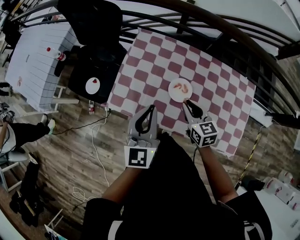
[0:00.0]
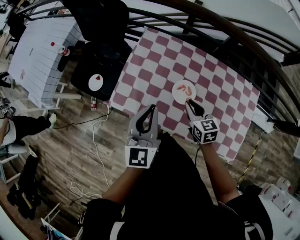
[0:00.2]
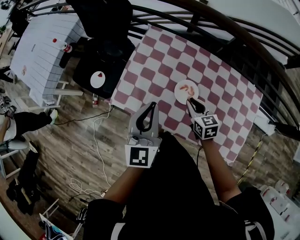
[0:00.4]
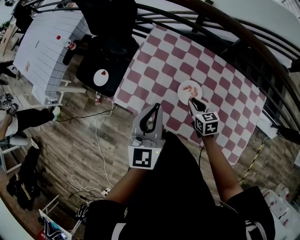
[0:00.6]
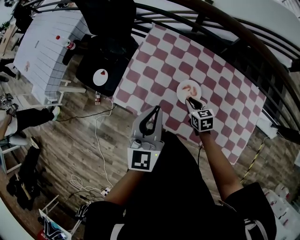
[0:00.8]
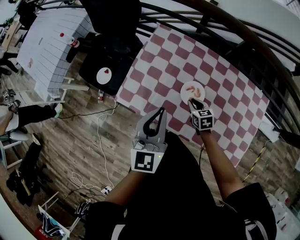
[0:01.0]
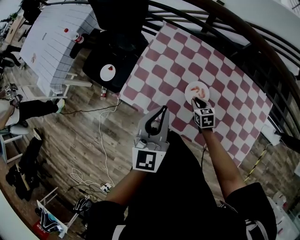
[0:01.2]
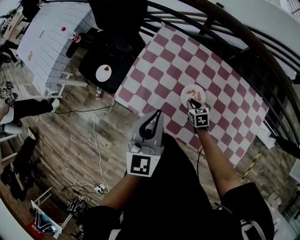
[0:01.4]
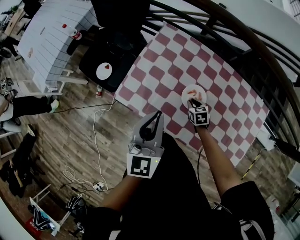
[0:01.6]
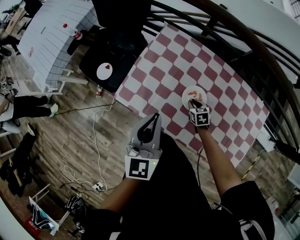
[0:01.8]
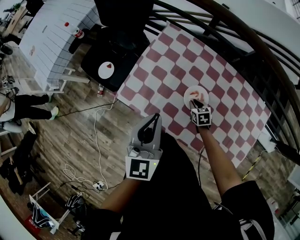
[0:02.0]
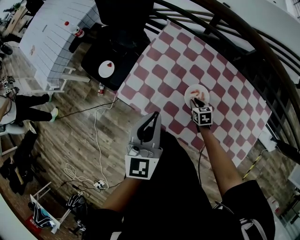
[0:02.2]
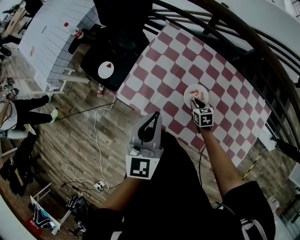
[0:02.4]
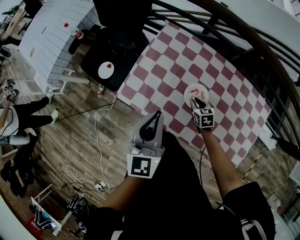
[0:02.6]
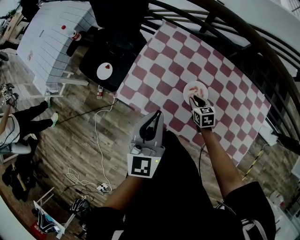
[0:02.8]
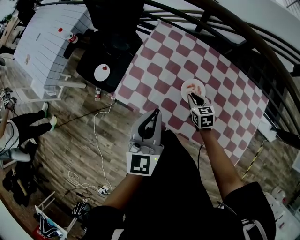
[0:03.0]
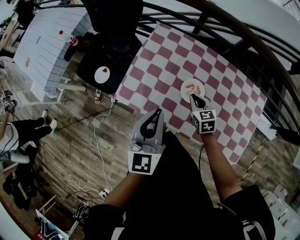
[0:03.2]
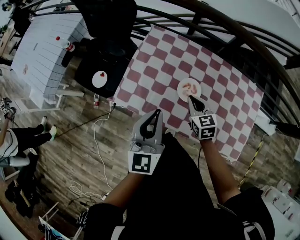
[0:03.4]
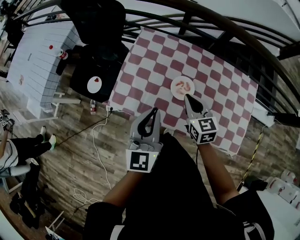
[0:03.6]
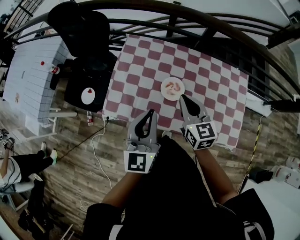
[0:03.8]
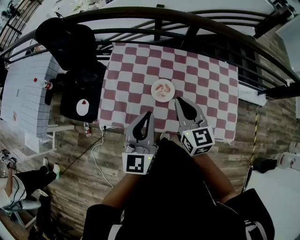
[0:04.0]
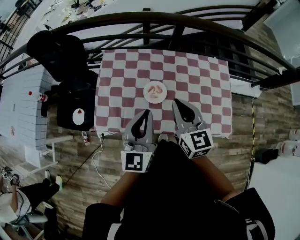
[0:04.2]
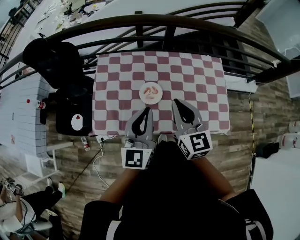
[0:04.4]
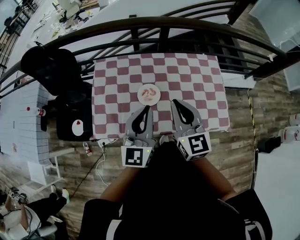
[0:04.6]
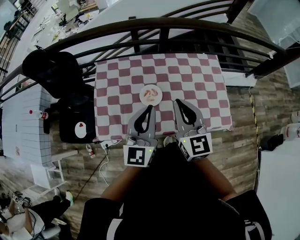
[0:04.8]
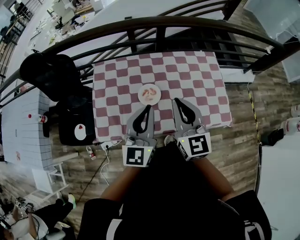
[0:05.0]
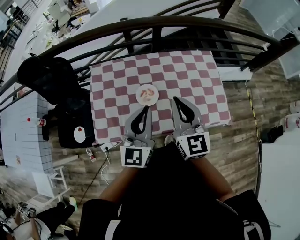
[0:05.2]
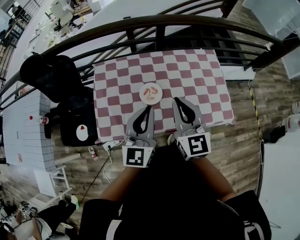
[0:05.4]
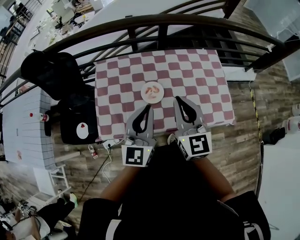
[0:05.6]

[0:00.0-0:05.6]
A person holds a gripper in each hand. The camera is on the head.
0:00.0 to 0:01.4: The right gripper is displaced downward by approximately 20 cm, and changes its angle by about 30 degrees.
0:01.4 to 0:02.8: The grippers move only a little.
0:02.8 to 0:04.2: The left gripper ends up about 10 cm from where it was, and changes its angle by some 30 degrees. The right gripper moves upward, approximately 30 cm, and tips its fingers upward by approximately 30 degrees.
0:04.2 to 0:05.6: The right gripper ends up approximately 5 cm from where it was.

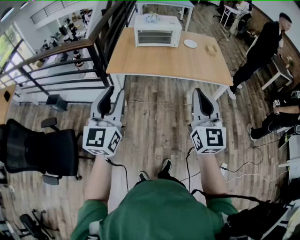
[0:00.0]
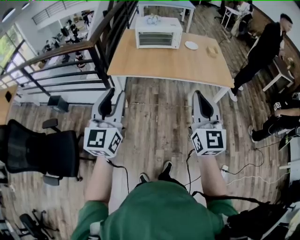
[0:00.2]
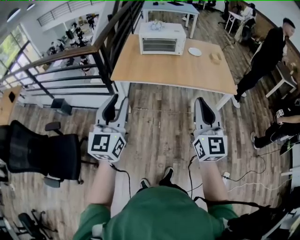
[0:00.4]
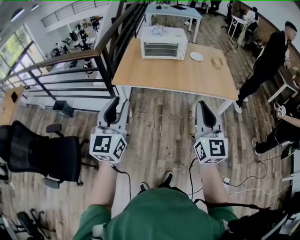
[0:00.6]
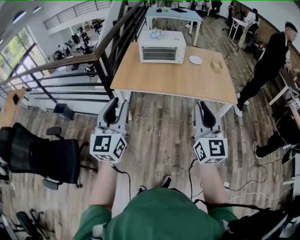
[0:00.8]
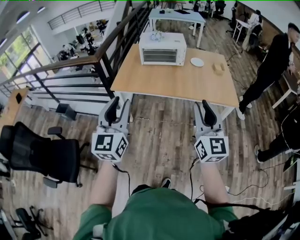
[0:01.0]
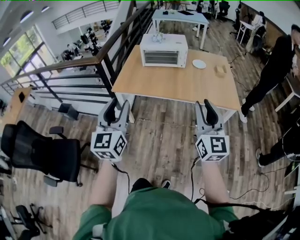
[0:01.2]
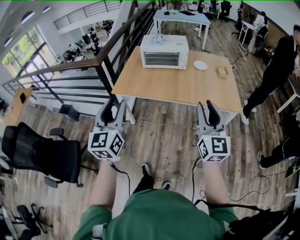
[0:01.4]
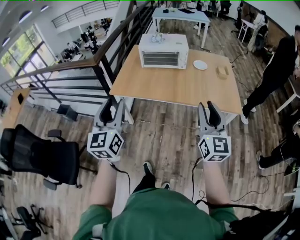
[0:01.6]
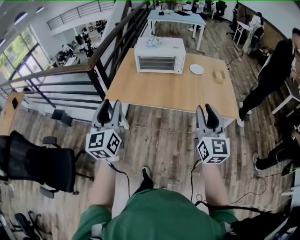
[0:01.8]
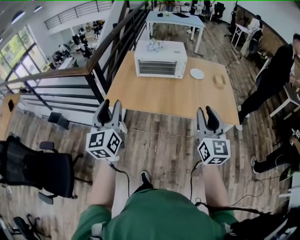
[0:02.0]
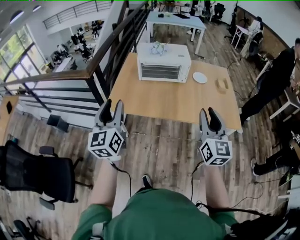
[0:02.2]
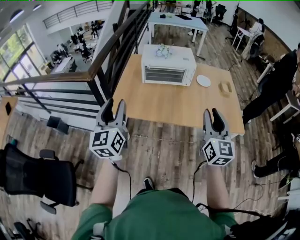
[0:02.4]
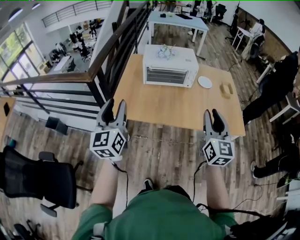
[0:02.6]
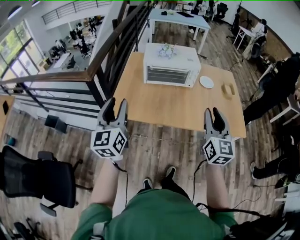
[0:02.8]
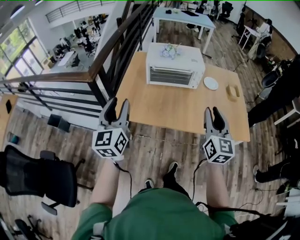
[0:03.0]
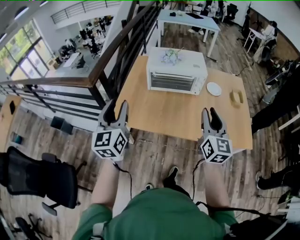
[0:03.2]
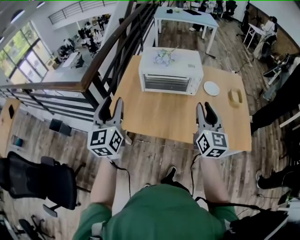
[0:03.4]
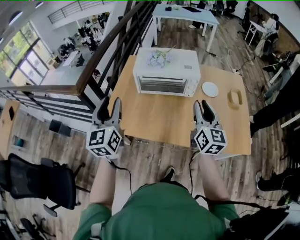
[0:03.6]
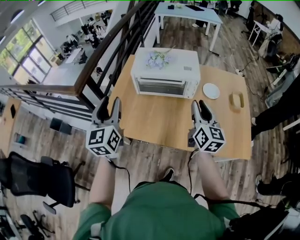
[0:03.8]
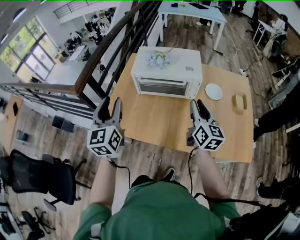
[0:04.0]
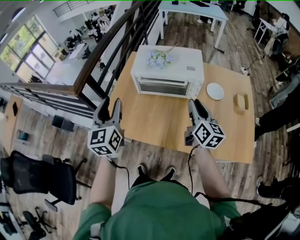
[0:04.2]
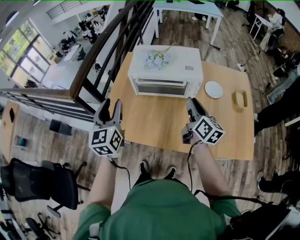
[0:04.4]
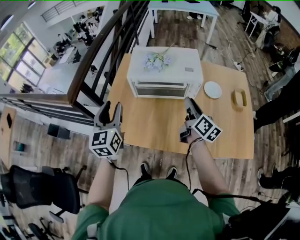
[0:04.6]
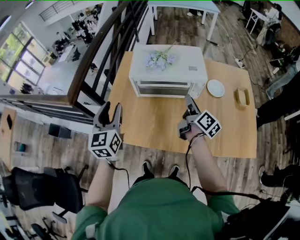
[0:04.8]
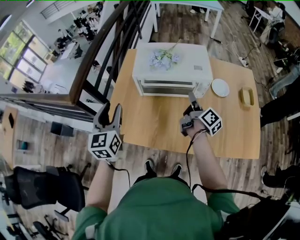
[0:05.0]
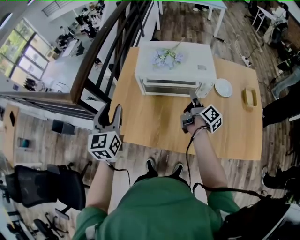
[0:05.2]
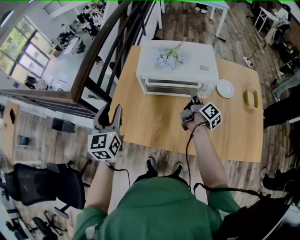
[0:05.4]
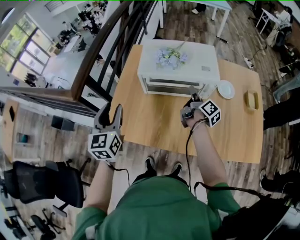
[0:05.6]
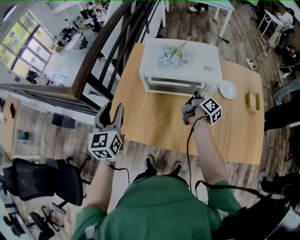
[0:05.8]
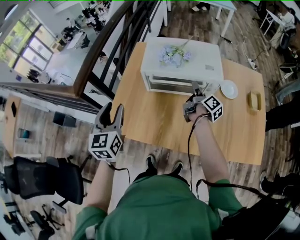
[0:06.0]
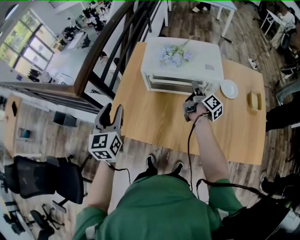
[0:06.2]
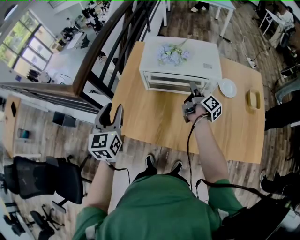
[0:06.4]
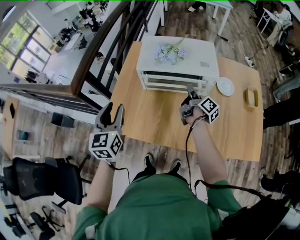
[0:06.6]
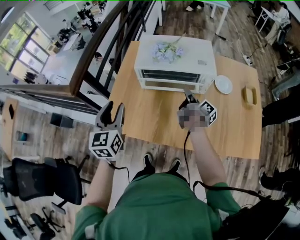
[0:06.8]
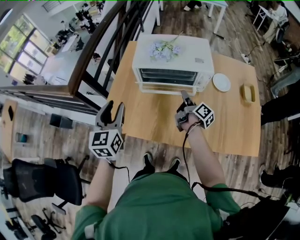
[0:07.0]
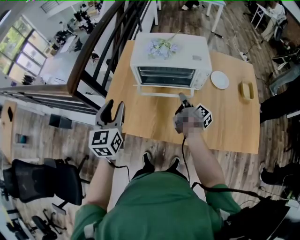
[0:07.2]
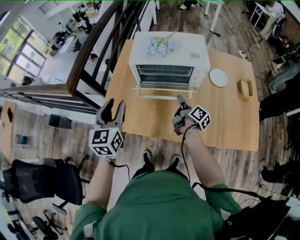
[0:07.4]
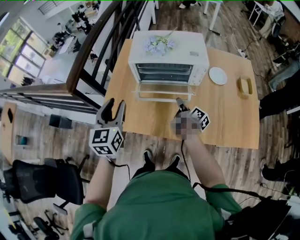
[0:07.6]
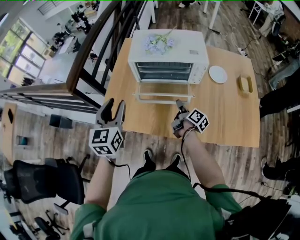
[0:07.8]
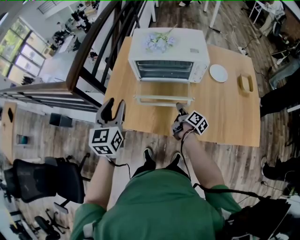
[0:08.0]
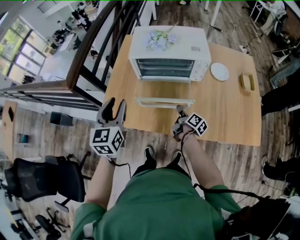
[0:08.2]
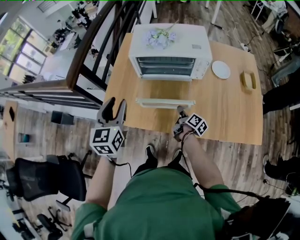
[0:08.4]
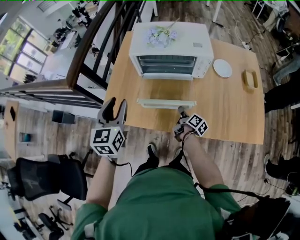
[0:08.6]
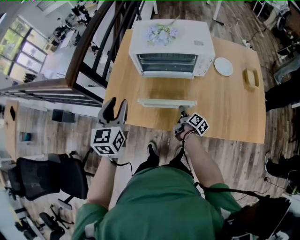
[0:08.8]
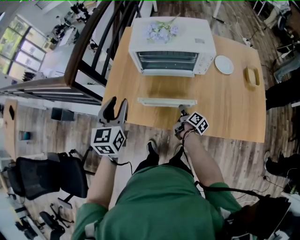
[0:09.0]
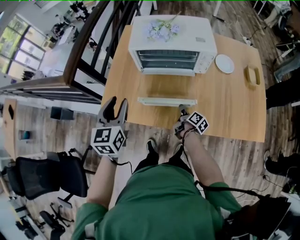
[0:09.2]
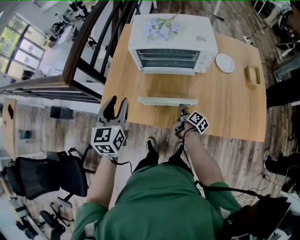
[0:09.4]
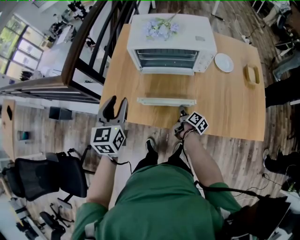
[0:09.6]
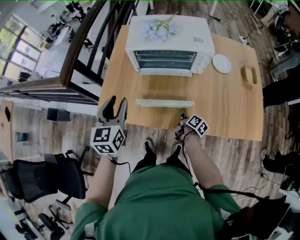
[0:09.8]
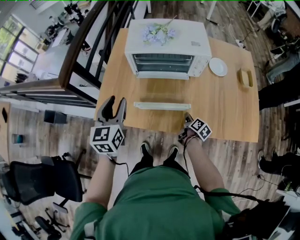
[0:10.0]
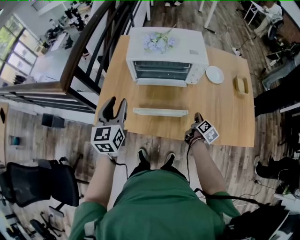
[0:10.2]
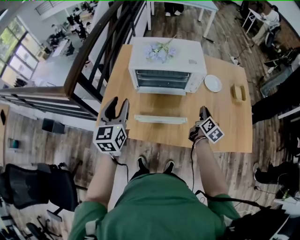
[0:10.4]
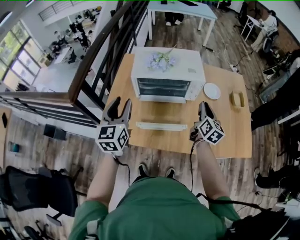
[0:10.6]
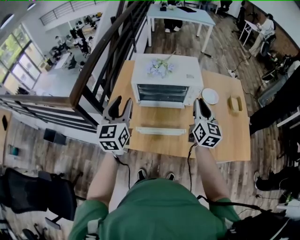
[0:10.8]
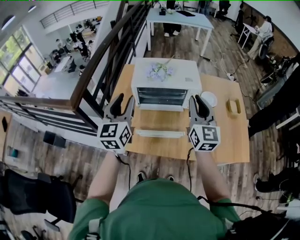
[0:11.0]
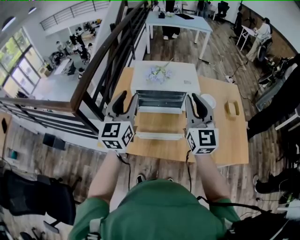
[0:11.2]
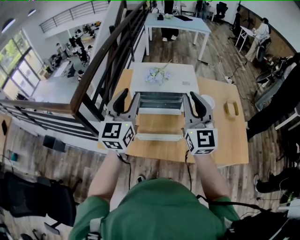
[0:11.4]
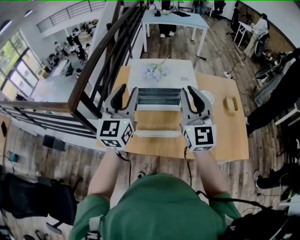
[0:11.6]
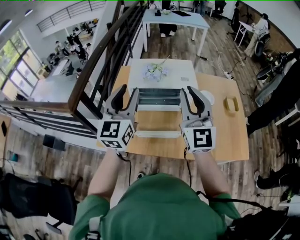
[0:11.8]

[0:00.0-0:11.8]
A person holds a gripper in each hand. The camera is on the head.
0:00.0 to 0:01.4: The right gripper heads to the right and forward, covering roughly 20 cm, and opens its fingers. Meanwhile the left gripper goes some 15 cm forward and to the right.
0:01.4 to 0:03.0: Both grippers travel together forward, about 30 cm.
0:03.0 to 0:04.4: The right gripper goes about 30 cm forward and downward, and turns by approximately 40 degrees, while the left gripper travels forward and to the right by roughly 20 cm.
0:04.4 to 0:06.0: The left gripper moves to the left and downward, some 10 cm. The right gripper is displaced forward and downward by approximately 20 cm, and changes its angle by approximately 40 degrees.
0:06.0 to 0:07.4: The right gripper is displaced backward and downward by about 15 cm; the left gripper goes about 5 cm to the right.
0:07.4 to 0:08.8: The right gripper is displaced downward and backward by about 15 cm.
0:08.8 to 0:10.4: The right gripper heads upward and to the right, covering roughly 20 cm, and rotates approximately 40 degrees.
0:10.4 to 0:11.8: The right gripper moves upward and to the left, roughly 35 cm, and tilts its fingers about 30 degrees upward. Meanwhile the left gripper moves upward, approximately 15 cm, and turns by about 20 degrees.

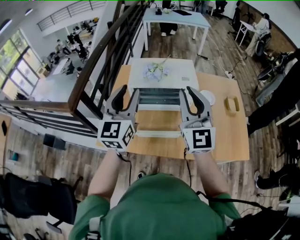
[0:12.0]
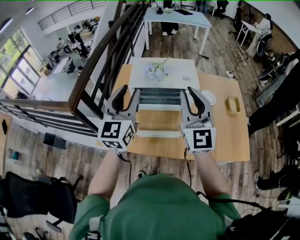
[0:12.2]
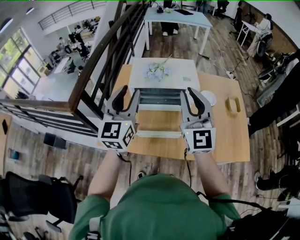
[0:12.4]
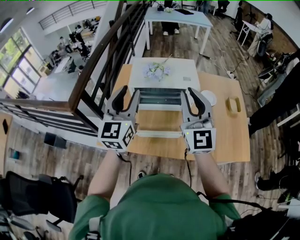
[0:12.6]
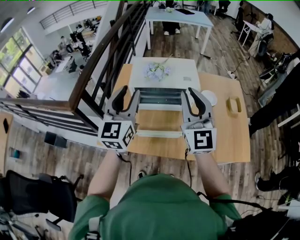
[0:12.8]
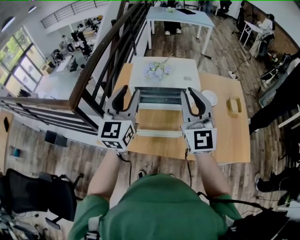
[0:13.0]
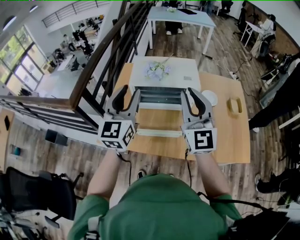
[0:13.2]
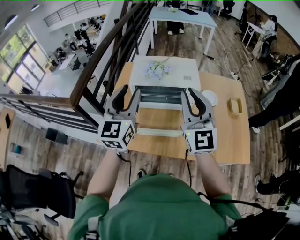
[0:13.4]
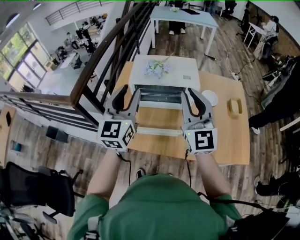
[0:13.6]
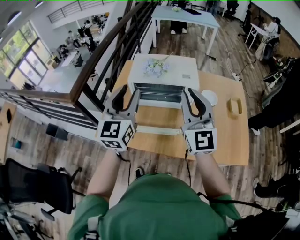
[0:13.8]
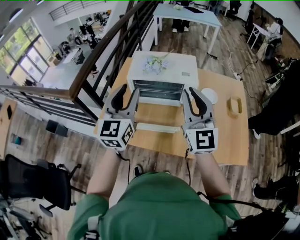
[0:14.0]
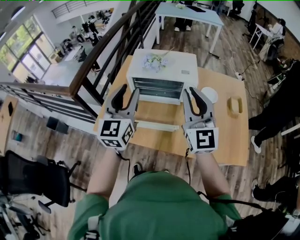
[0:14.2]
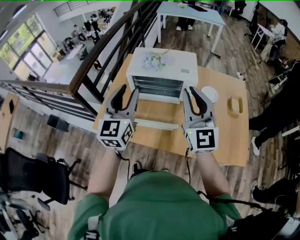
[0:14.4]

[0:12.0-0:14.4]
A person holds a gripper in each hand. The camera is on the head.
0:12.0 to 0:13.2: There are only small adjustments of the grippers.
0:13.2 to 0:14.4: The left gripper changes place by about 5 cm. The right gripper travels to the right by roughly 5 cm.

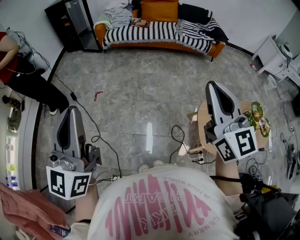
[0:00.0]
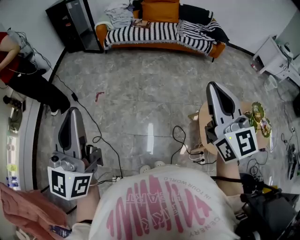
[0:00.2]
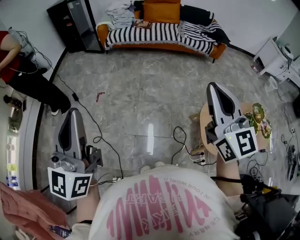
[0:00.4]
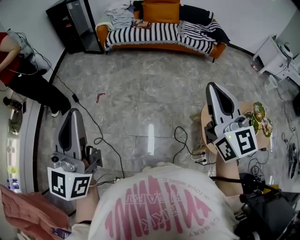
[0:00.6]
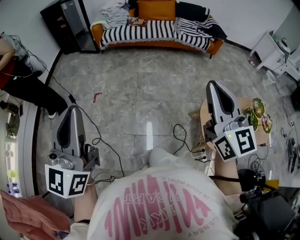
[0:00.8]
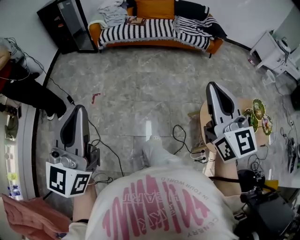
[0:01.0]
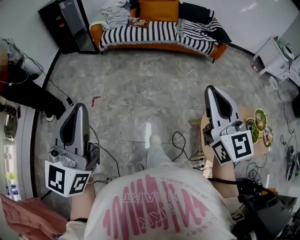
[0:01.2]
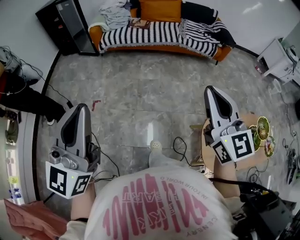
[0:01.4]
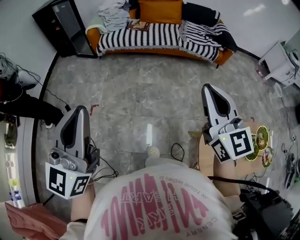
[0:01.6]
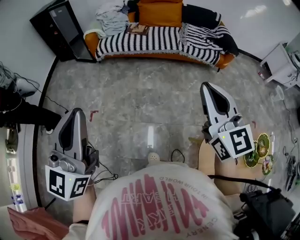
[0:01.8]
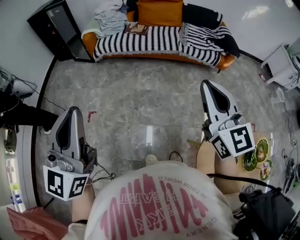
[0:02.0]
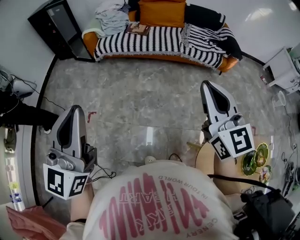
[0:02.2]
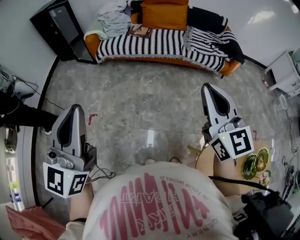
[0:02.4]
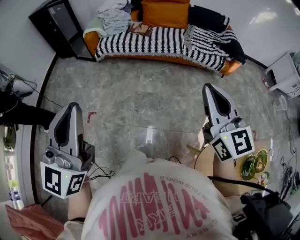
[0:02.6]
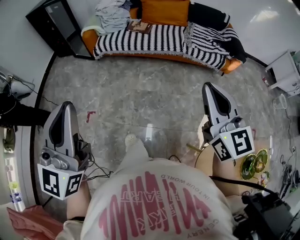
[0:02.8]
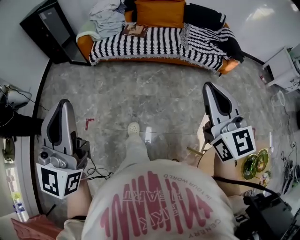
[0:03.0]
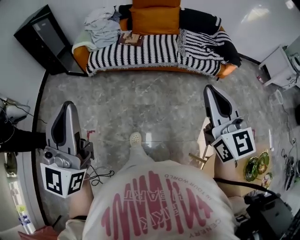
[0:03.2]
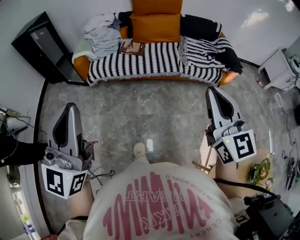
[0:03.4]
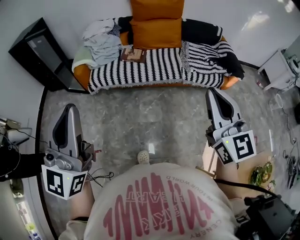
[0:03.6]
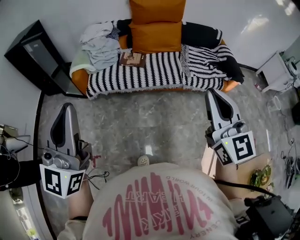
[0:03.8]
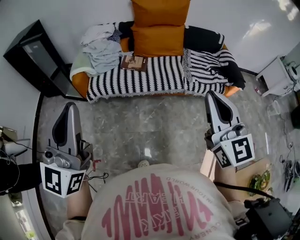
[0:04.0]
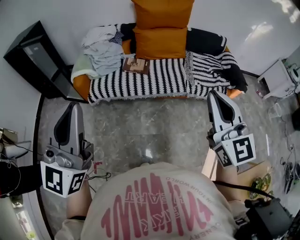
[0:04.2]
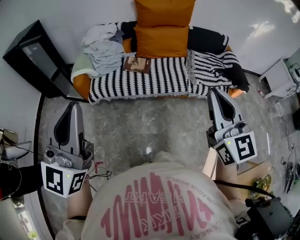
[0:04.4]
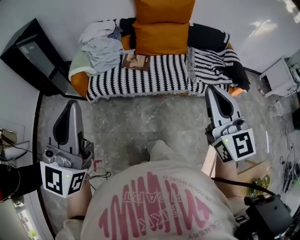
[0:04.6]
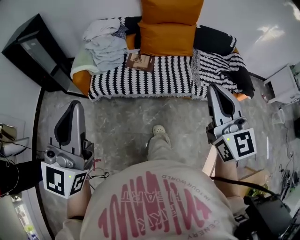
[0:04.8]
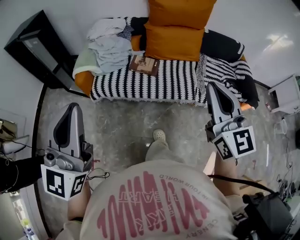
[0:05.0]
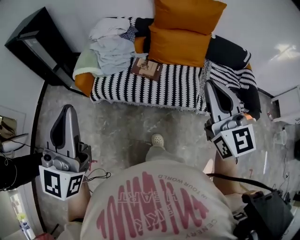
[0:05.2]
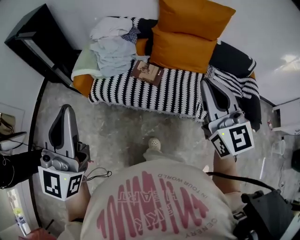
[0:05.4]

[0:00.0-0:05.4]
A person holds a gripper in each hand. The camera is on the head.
0:00.0 to 0:01.4: Both grippers move forward, roughly 15 cm.
0:01.4 to 0:02.8: Both grippers move forward, approximately 20 cm.
0:02.8 to 0:04.0: Both grippers travel together forward, approximately 25 cm.
0:04.0 to 0:05.4: Both grippers move forward, about 25 cm.
